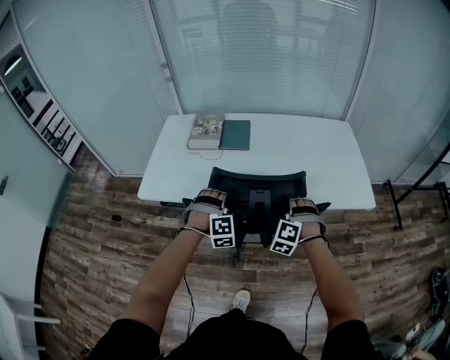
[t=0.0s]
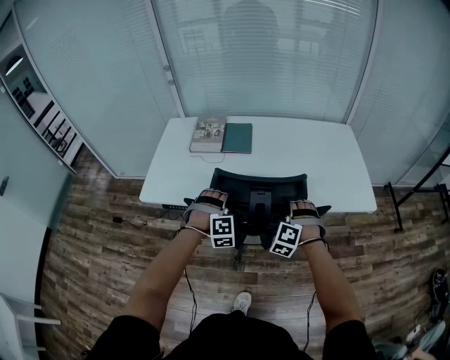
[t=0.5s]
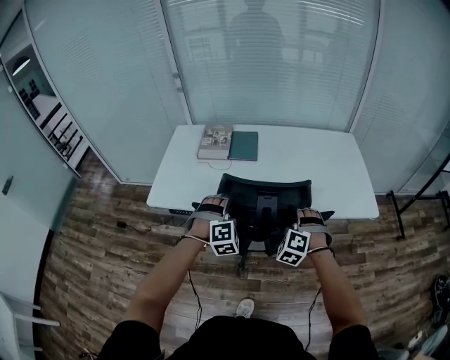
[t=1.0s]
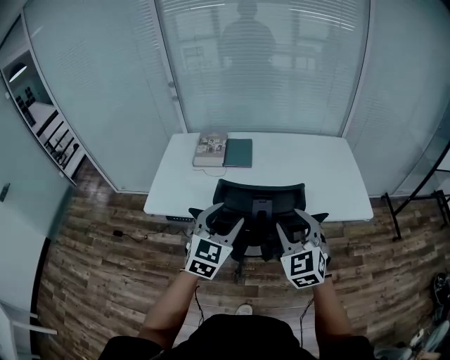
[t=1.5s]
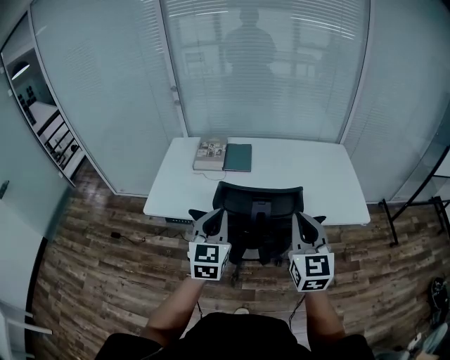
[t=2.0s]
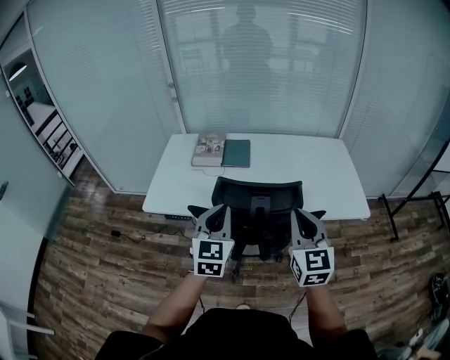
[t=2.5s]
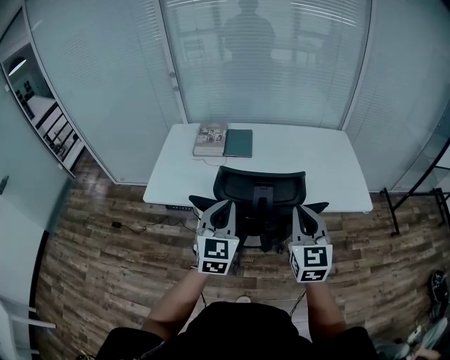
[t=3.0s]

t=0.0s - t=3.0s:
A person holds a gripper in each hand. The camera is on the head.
t=0.0s - t=1.5s: The right gripper is displaced upward by some 20 cm, and rolls clockwise, seen from behind, by some 40 degrees.
t=1.5s - t=3.0s: The right gripper rotates about 20 degrees, and closes up.

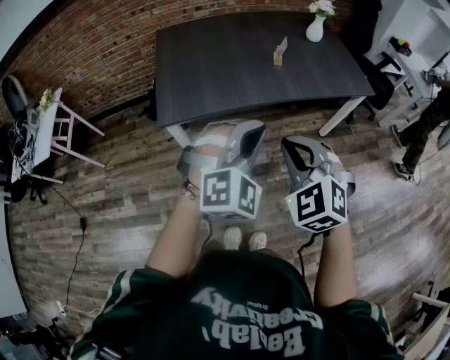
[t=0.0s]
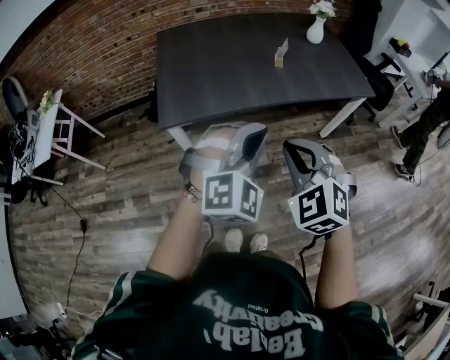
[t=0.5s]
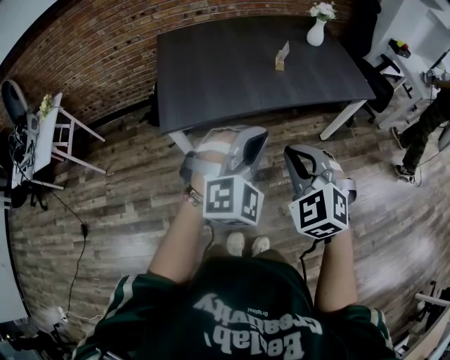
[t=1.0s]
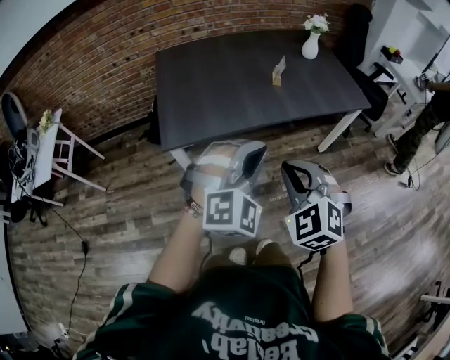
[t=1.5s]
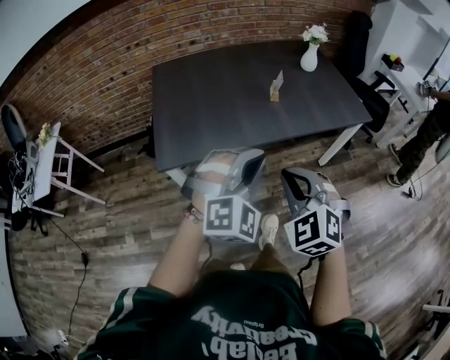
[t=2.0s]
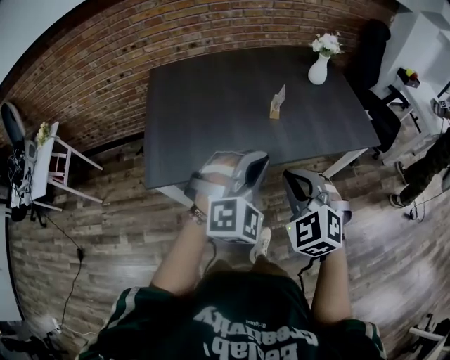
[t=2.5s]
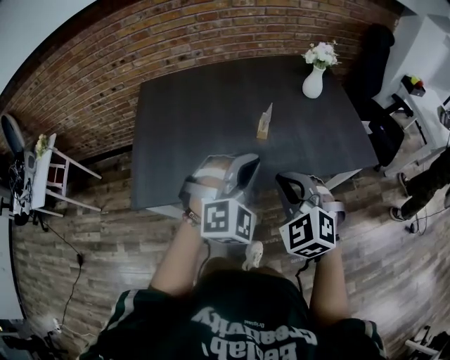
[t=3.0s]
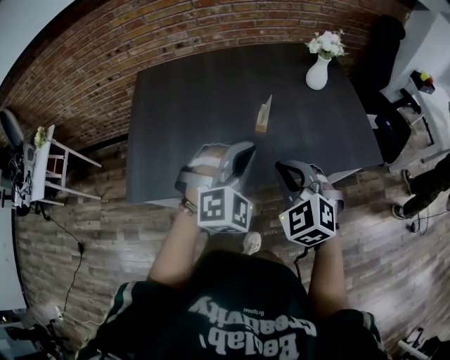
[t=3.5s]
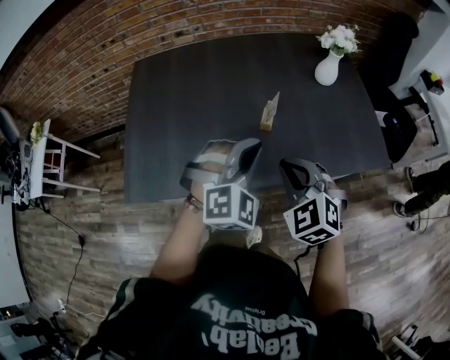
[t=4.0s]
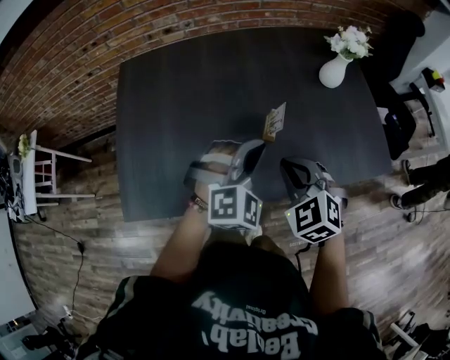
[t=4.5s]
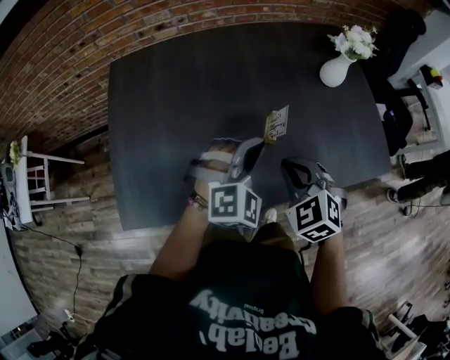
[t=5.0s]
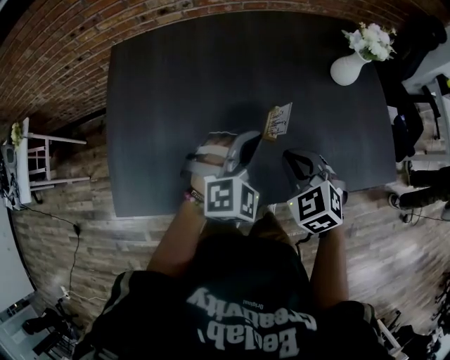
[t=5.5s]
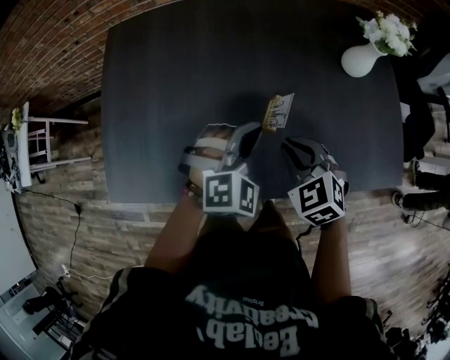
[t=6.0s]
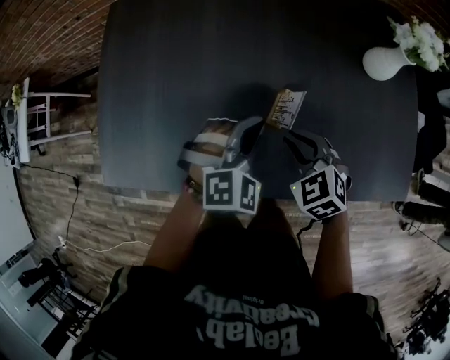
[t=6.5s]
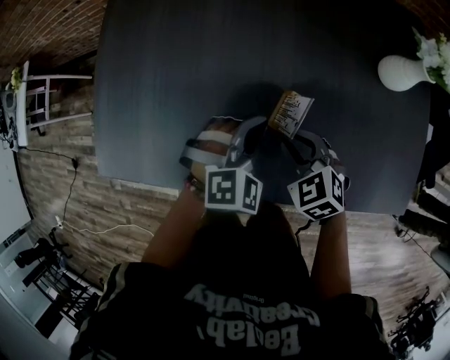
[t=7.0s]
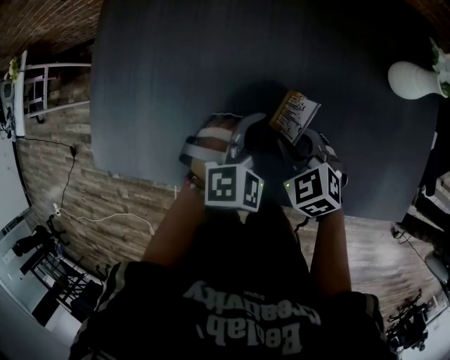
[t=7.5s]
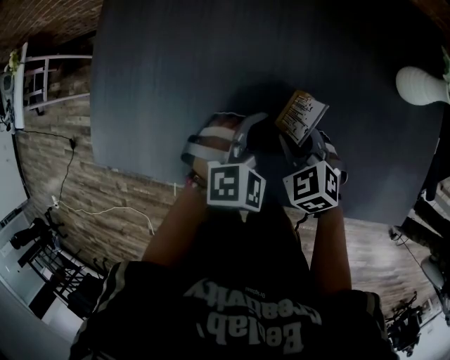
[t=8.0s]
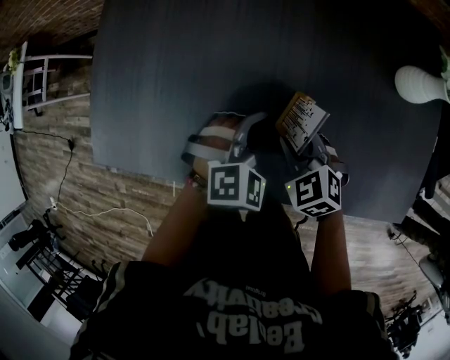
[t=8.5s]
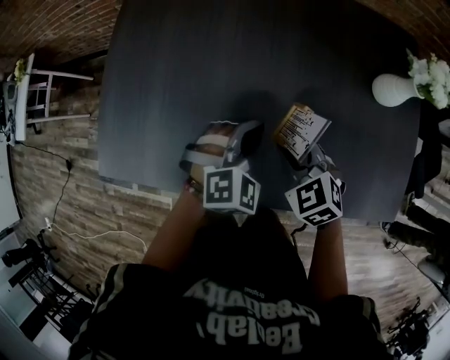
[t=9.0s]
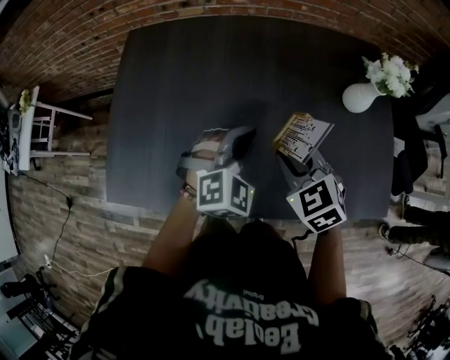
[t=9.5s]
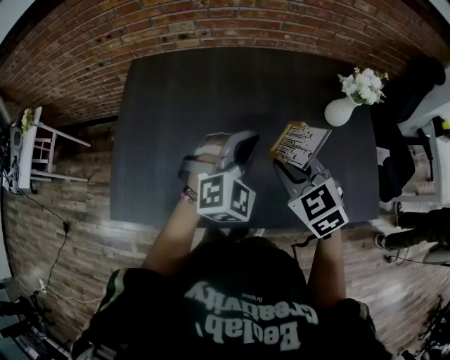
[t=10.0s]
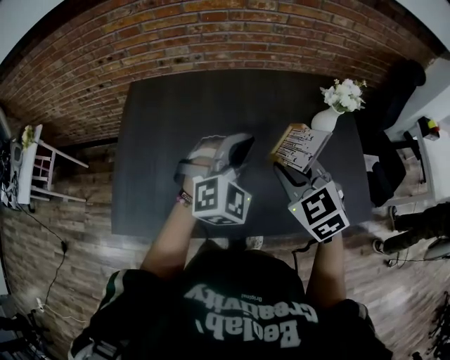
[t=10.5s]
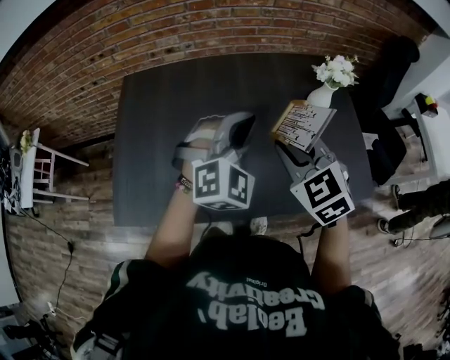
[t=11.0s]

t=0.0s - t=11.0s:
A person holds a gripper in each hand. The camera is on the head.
t=0.0s - t=2.0s: Both grippers move forward, approximately 5 cm.
t=2.0s - t=3.5s: Both grippers travel together forward and to the right, about 35 cm.
t=3.5s - t=5.5s: Both grippers move forward and downward, some 25 cm.
t=5.5s - t=7.5s: The grippers both shift downward and forward by about 15 cm. The left gripper swivels approximately 20 degrees. Meanwhile the right gripper swivels approximately 20 degrees.
t=7.5s - t=9.0s: The grippers both shift upward by roughly 5 cm.
t=9.0s - t=11.0s: The grippers both shift upward by approximately 25 cm. The right gripper swivels about 20 degrees, while the left gripper rotates some 30 degrees.

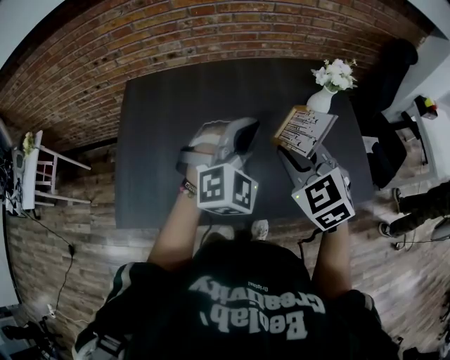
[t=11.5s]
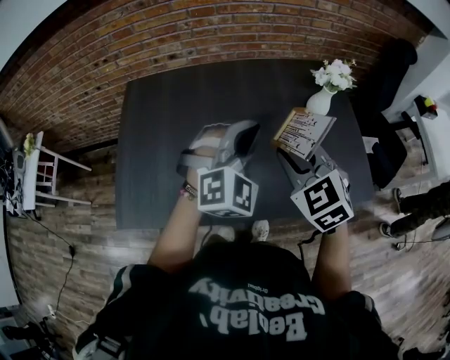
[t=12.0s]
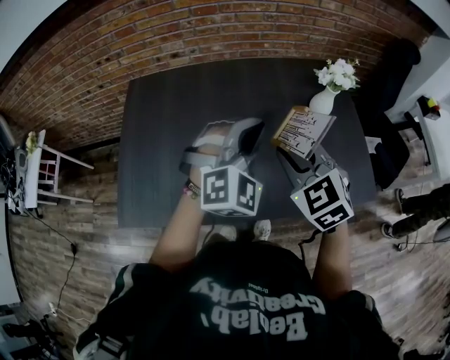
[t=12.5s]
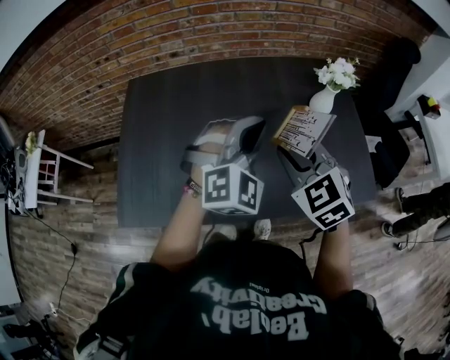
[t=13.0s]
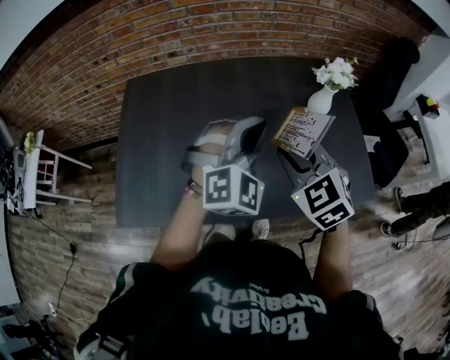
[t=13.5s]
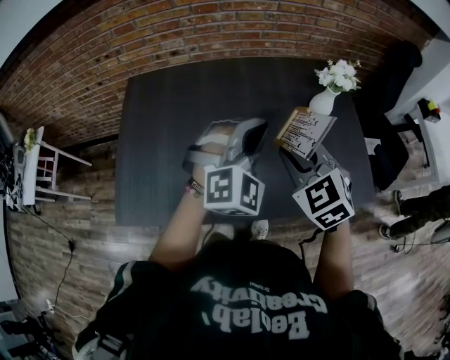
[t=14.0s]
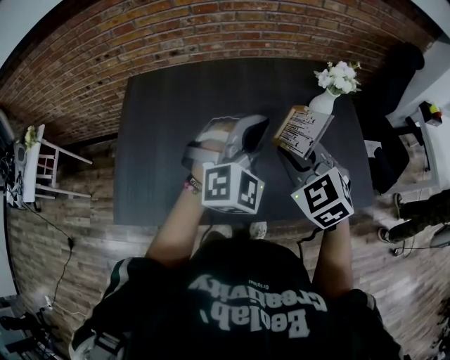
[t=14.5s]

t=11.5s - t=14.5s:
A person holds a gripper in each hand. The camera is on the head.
t=11.5s - t=13.0s: Both grippers stay about where they are.
t=13.0s - t=14.5s: There are only small adjustments of the grippers.

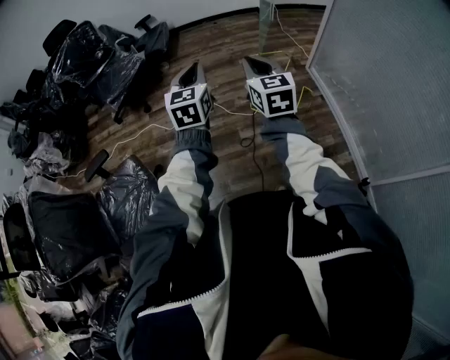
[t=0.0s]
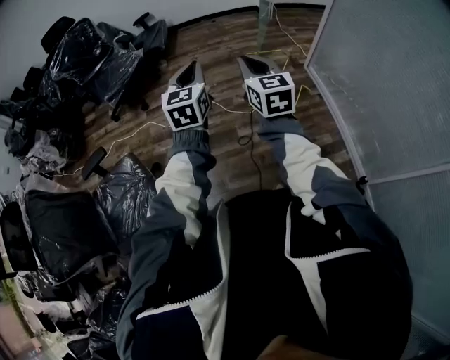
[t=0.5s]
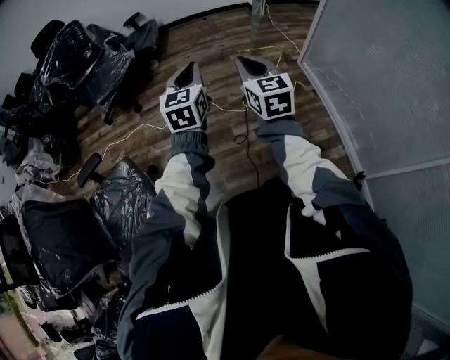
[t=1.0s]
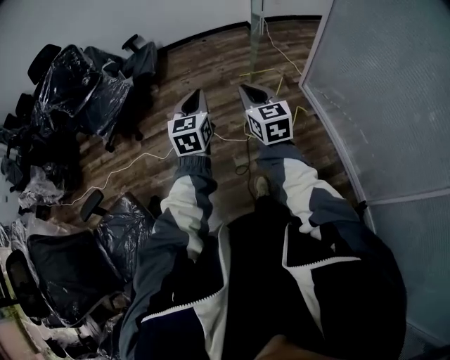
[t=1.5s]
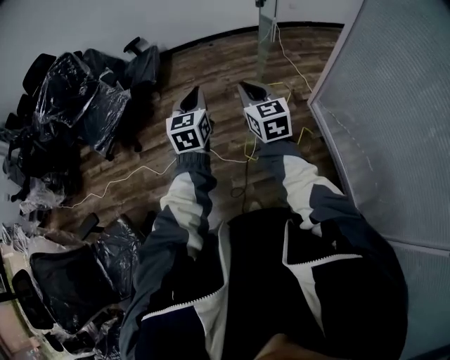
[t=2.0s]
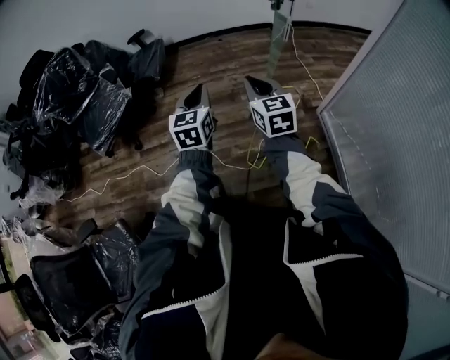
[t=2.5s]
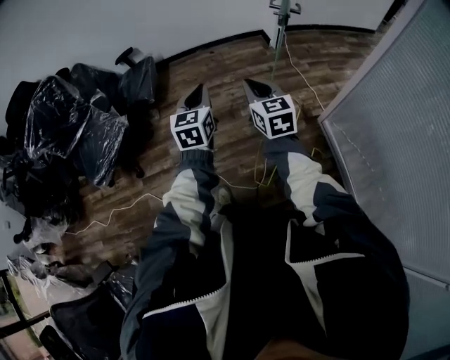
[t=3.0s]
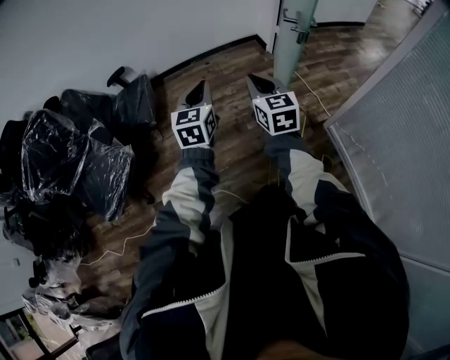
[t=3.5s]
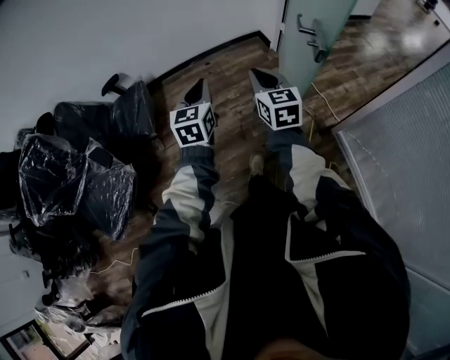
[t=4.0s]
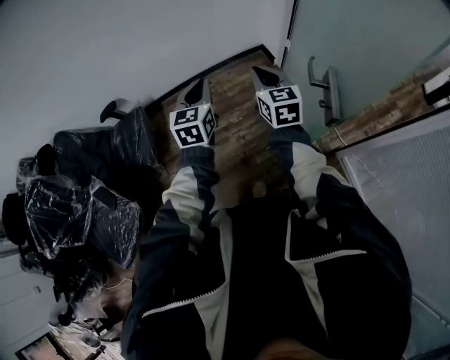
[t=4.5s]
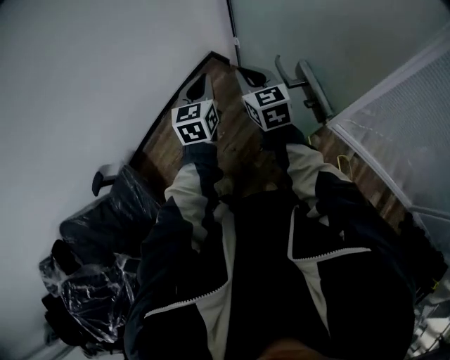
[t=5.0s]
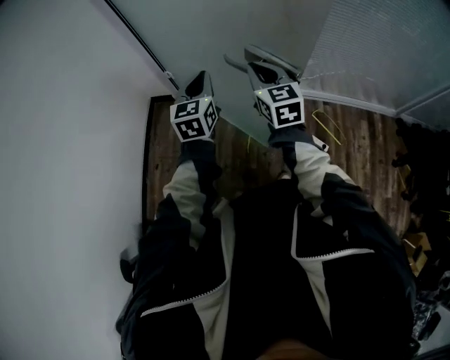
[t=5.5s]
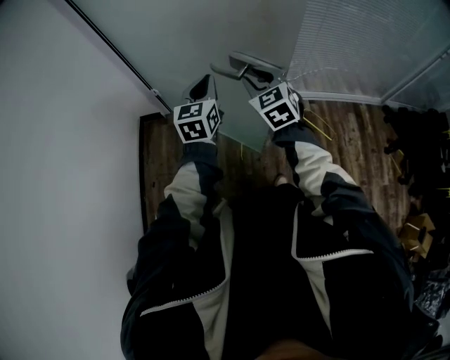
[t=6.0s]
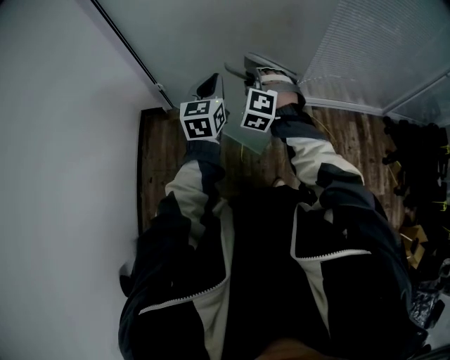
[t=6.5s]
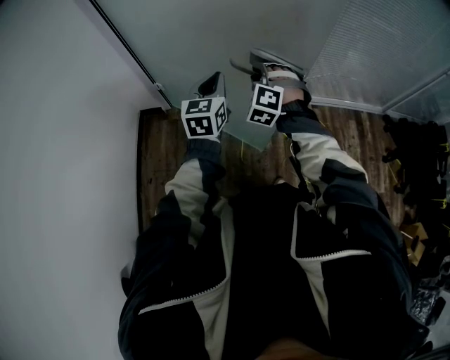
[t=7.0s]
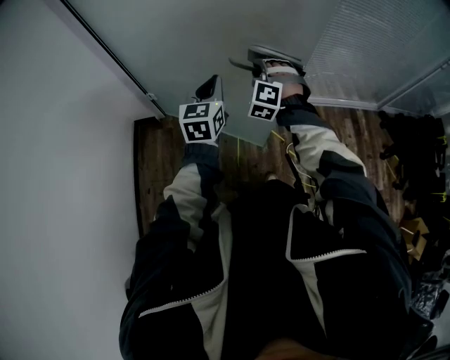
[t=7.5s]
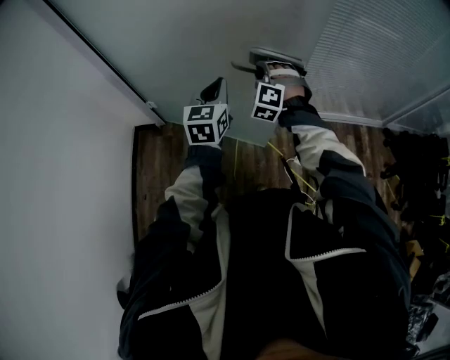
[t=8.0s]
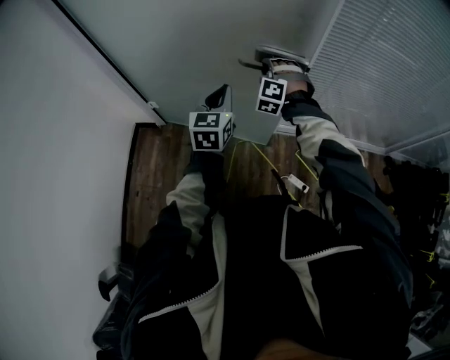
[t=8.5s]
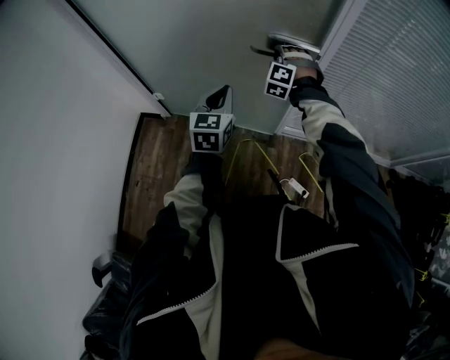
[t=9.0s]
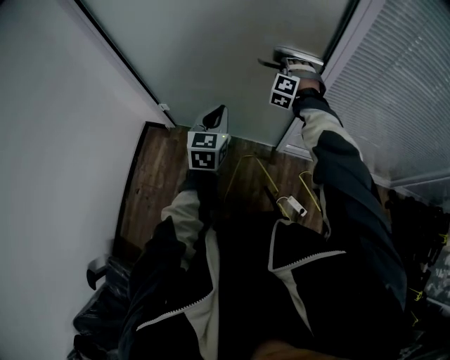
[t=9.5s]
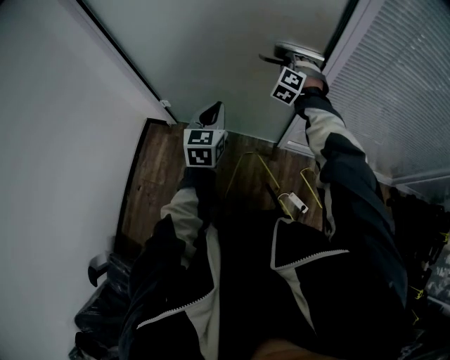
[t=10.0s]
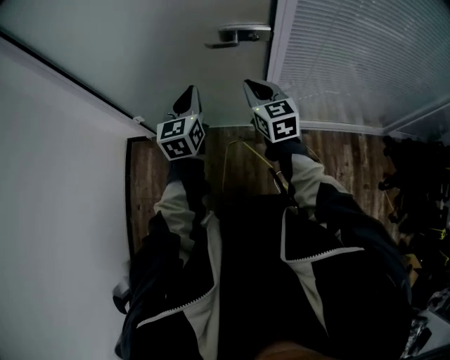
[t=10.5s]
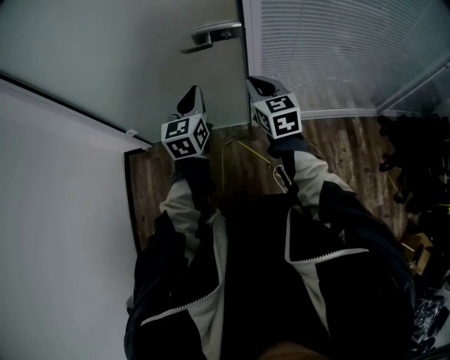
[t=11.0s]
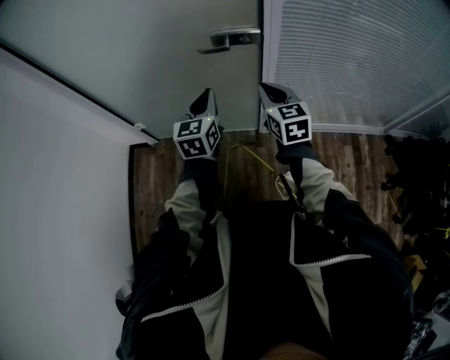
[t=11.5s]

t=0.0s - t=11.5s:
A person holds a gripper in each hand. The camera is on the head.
t=0.0s - t=2.0s: The two grippers go approximately 30 cm forward.
t=2.0s - t=4.0s: The two grippers travel together, forward, approximately 60 cm.
t=4.0s - t=6.0s: The left gripper shifts by approximately 40 cm, and rotates some 70 degrees; the right gripper shifts by about 25 cm, changes its angle by some 60 degrees, and opens up.
t=6.0s - t=7.5s: The left gripper moves forward, approximately 5 cm. Meanwhile the right gripper heads forward and downward, covering roughly 15 cm, and rotates around the line of its fingers by approximately 50 degrees, counterclockwise from behind.
t=7.5s - t=9.5s: The left gripper travels forward and to the right by approximately 15 cm. Meanwhile the right gripper shifts about 35 cm forward.
t=9.5s - t=11.5s: The left gripper travels to the right by about 10 cm. Meanwhile the right gripper heads backward and to the right, covering some 25 cm, twists some 80 degrees clockwise, seen from behind, and closes its fingers.
